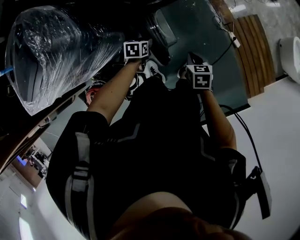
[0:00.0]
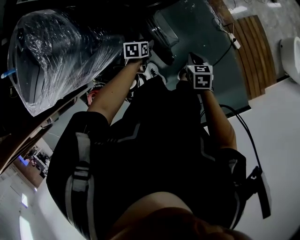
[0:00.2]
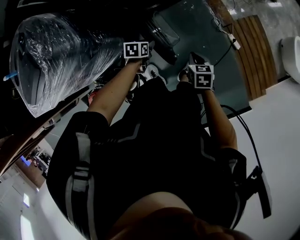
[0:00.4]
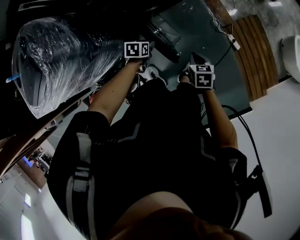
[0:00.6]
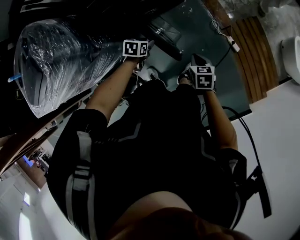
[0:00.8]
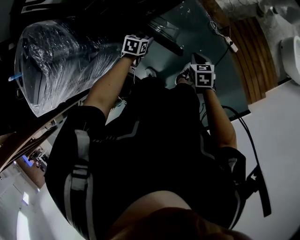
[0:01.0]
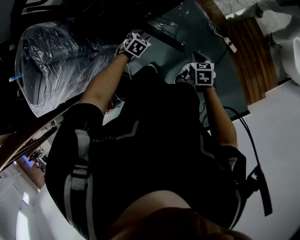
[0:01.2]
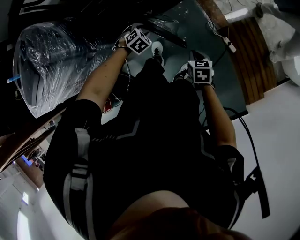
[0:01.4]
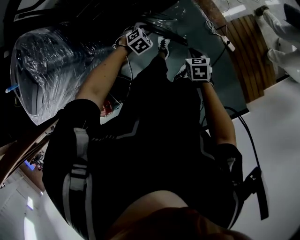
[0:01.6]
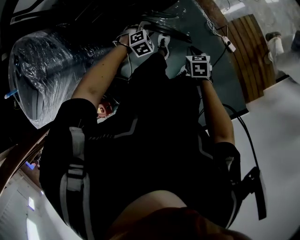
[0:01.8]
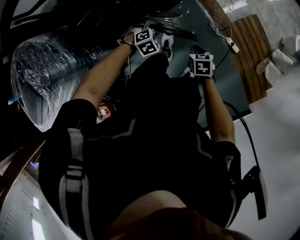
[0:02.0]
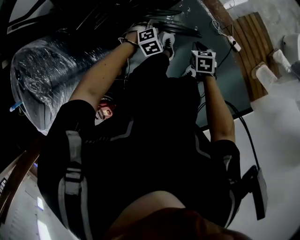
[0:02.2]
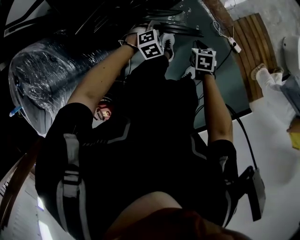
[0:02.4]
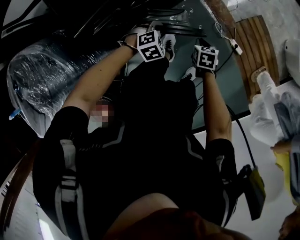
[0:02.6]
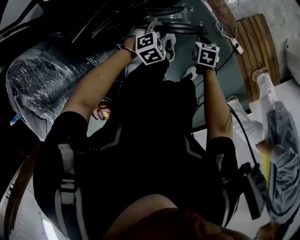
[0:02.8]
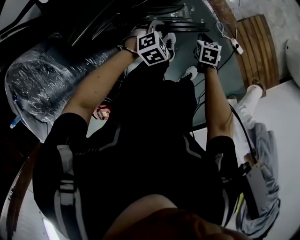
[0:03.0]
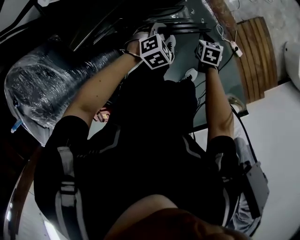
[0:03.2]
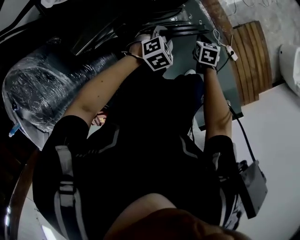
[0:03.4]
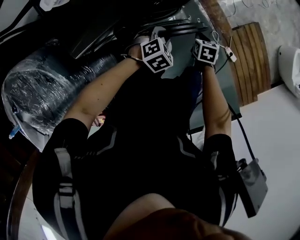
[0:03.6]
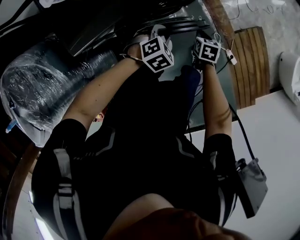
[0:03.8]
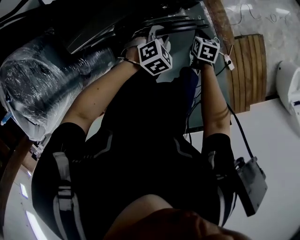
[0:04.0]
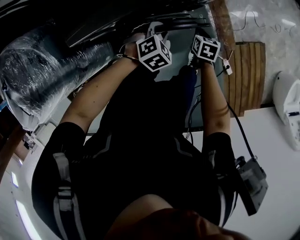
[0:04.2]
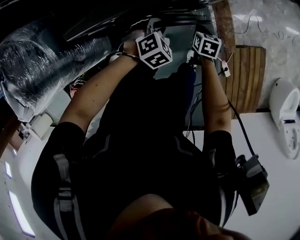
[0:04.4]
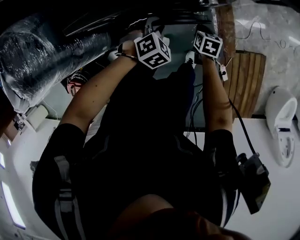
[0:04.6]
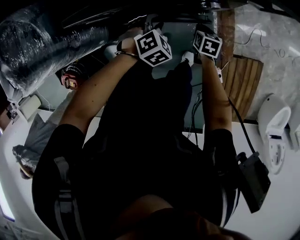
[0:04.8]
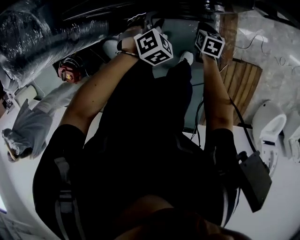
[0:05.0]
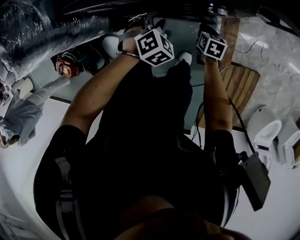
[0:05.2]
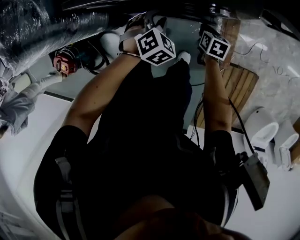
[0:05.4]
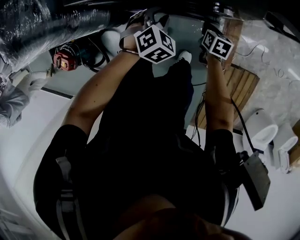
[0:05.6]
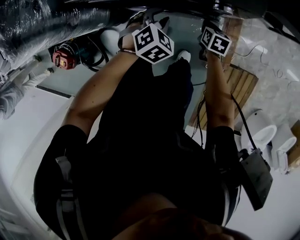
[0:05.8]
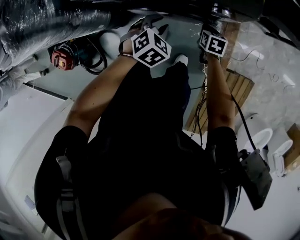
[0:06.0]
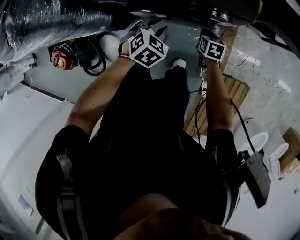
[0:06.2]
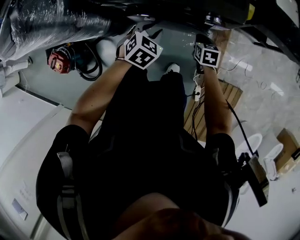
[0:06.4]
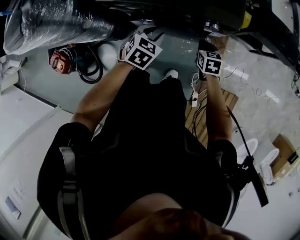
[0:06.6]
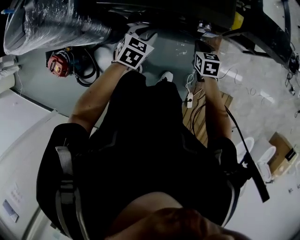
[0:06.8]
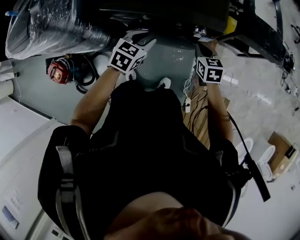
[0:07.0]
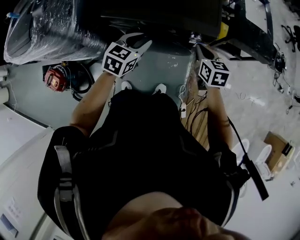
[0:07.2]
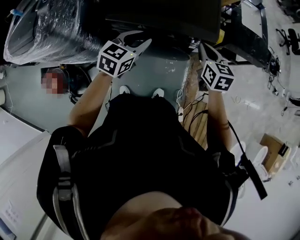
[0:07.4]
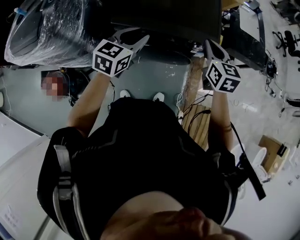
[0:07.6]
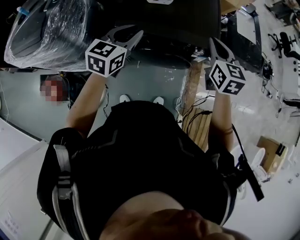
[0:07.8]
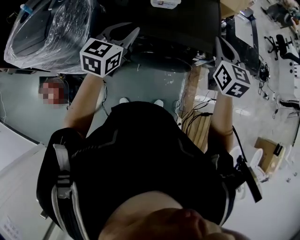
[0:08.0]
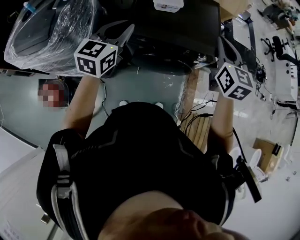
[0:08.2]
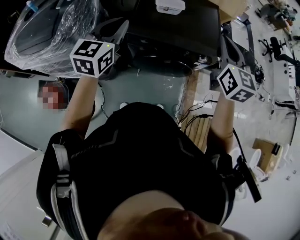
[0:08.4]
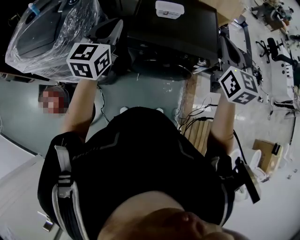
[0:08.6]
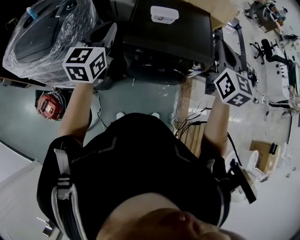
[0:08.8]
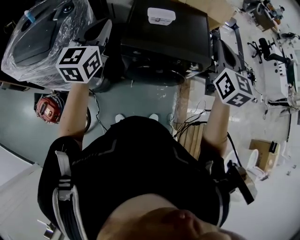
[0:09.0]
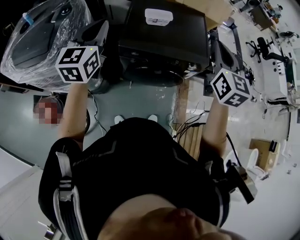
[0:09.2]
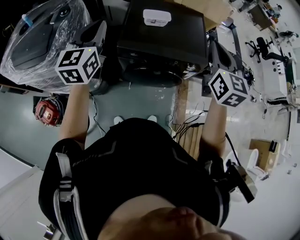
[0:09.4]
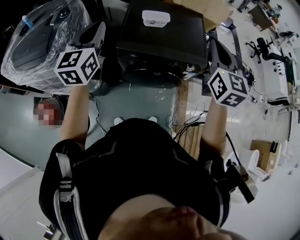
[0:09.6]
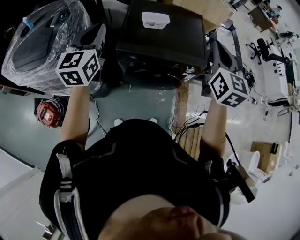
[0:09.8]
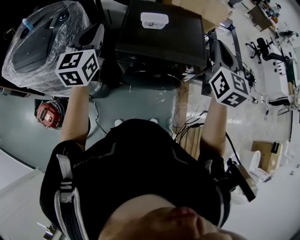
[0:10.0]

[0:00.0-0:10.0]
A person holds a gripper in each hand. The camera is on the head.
0:00.0 to 0:01.4: The two grippers go about 15 cm to the right and forward. The left gripper rolls clockwise, seen from behind, by roughly 60 degrees.
0:01.4 to 0:02.8: The left gripper ends up some 15 cm from where it was, and rotates about 20 degrees, while the right gripper moves about 25 cm.
0:02.8 to 0:04.2: The right gripper changes place by about 15 cm. Meanwhile the left gripper moves about 10 cm, and changes its angle by some 20 degrees.
0:04.2 to 0:05.8: The right gripper ends up about 10 cm from where it was, and swivels roughly 20 degrees. Meanwhile the left gripper changes its angle by roughly 30 degrees.
0:05.8 to 0:07.2: Both grippers move upward, some 30 cm. The left gripper rotates roughly 40 degrees. Meanwhile the right gripper rotates some 30 degrees.
0:07.2 to 0:08.6: The left gripper shifts roughly 35 cm to the left and upward, swivels approximately 30 degrees, and closes up, while the right gripper travels upward and to the left by roughly 35 cm, and changes its angle by some 30 degrees.
0:08.6 to 0:10.0: The grippers move only a little.

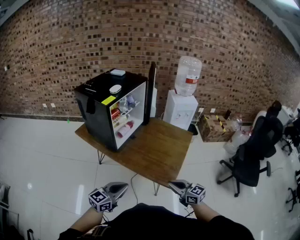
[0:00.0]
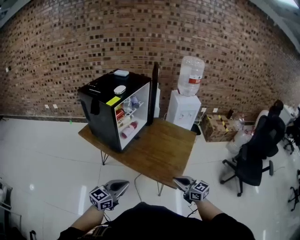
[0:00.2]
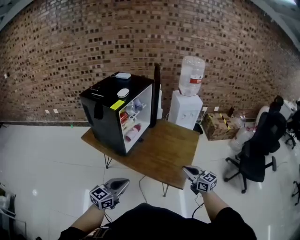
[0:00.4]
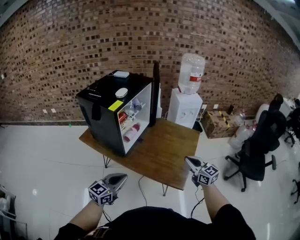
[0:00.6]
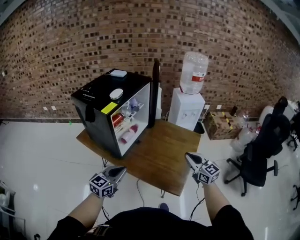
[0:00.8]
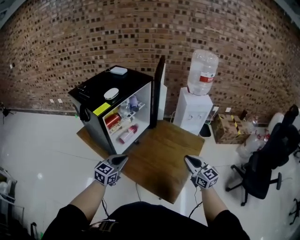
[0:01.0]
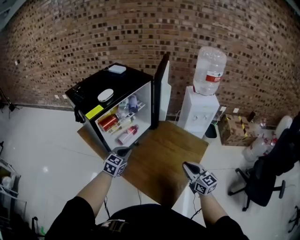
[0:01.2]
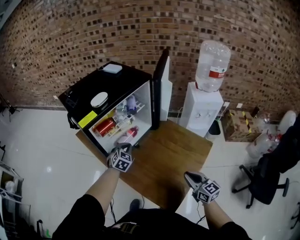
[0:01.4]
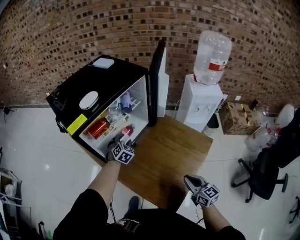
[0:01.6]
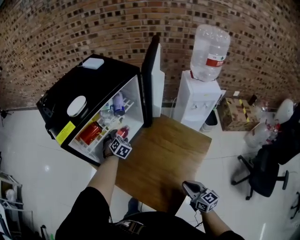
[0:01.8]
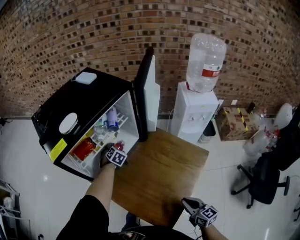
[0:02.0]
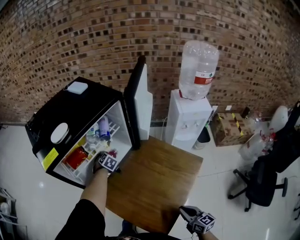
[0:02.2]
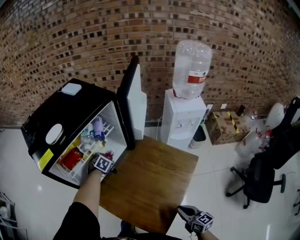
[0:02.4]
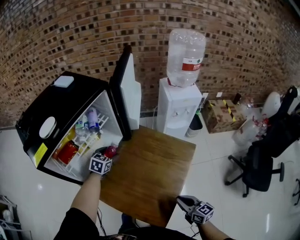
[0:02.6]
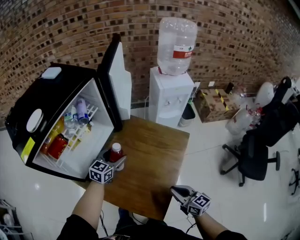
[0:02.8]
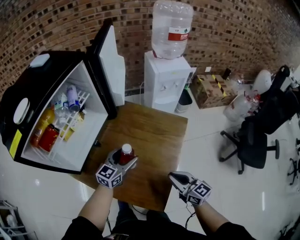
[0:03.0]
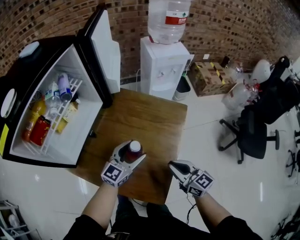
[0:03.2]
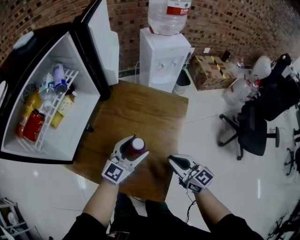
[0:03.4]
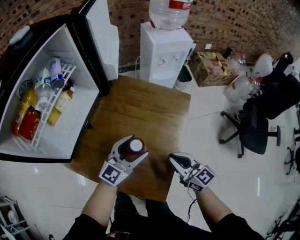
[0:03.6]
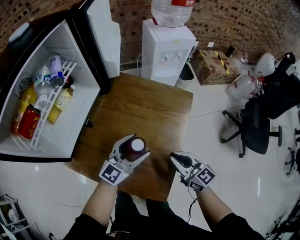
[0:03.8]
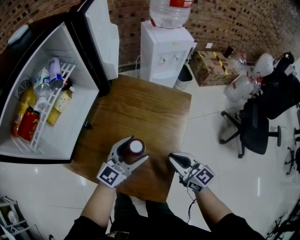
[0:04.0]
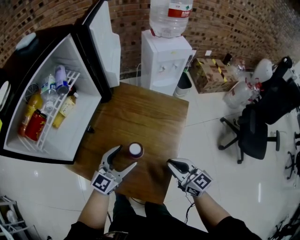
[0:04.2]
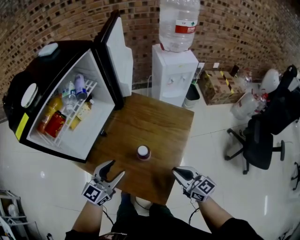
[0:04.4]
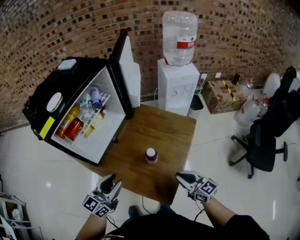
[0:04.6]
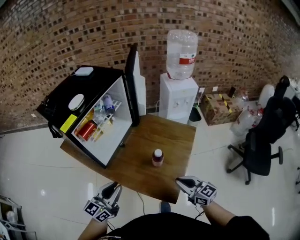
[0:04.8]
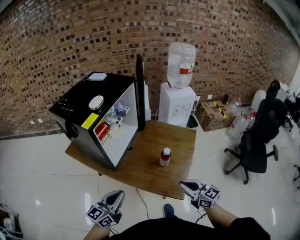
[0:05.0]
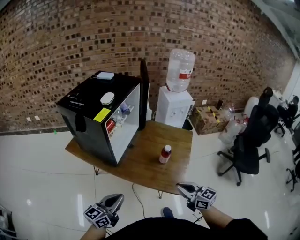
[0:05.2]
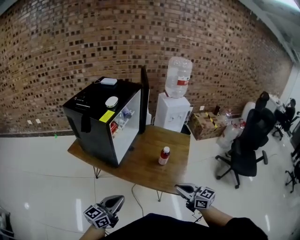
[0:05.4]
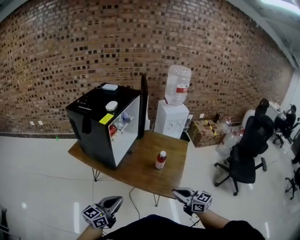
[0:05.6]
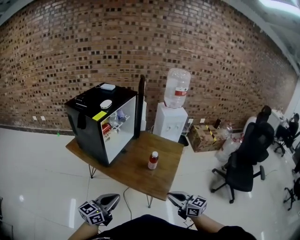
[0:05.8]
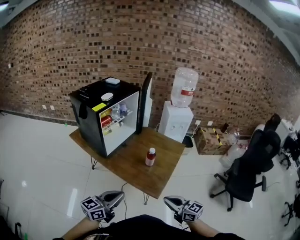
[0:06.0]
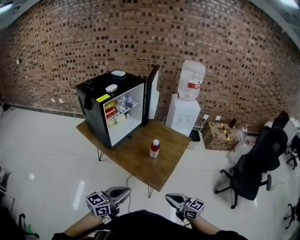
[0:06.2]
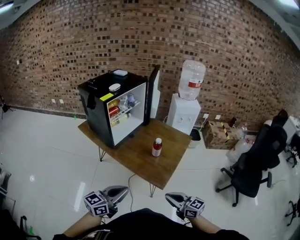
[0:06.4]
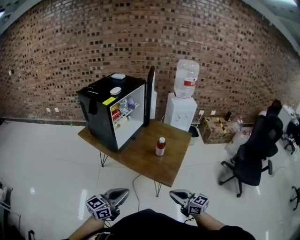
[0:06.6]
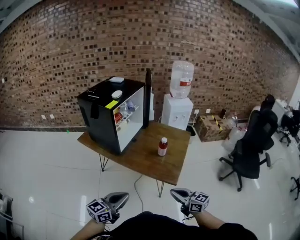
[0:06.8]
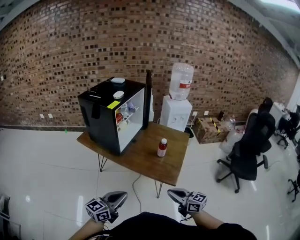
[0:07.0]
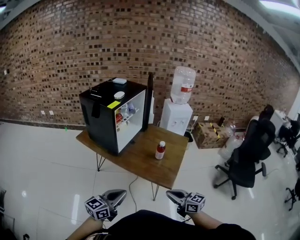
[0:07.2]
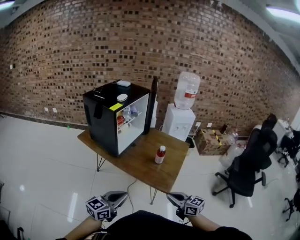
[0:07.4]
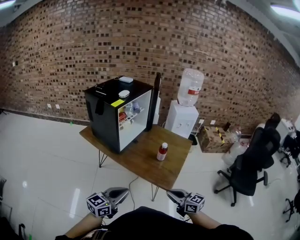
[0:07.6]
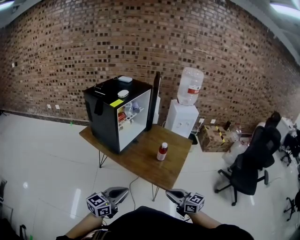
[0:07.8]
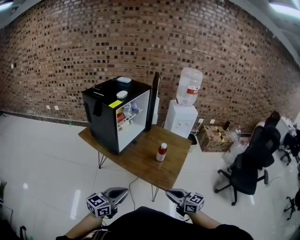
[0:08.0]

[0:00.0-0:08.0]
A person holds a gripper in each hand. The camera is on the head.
0:00.0 to 0:01.6: The left gripper ends up roughly 60 cm from where it was, tips its fingers downward by about 30 degrees, and opens; the right gripper moves about 35 cm.
0:01.6 to 0:03.2: The right gripper moves downward, some 5 cm. Meanwhile the left gripper ends up about 30 cm from where it was, angles its fingers upward, by some 30 degrees, and opens.
0:03.2 to 0:04.8: The left gripper travels backward, to the left and upward by about 35 cm, turns by approximately 20 degrees, and closes up; the right gripper goes about 20 cm backward, upward and to the left.
0:04.8 to 0:06.4: The two grippers go roughly 30 cm backward.
0:06.4 to 0:08.0: The grippers both shift to the left by approximately 10 cm.

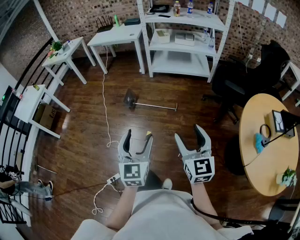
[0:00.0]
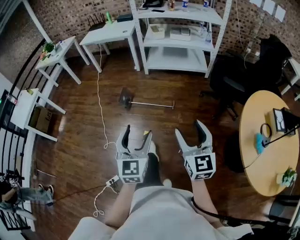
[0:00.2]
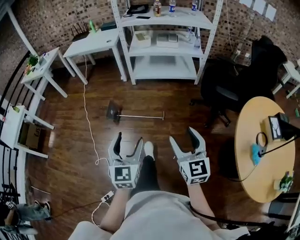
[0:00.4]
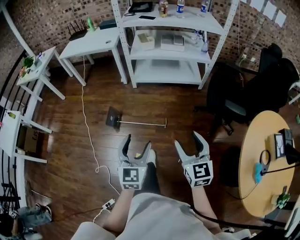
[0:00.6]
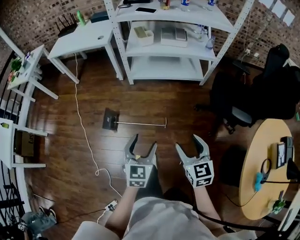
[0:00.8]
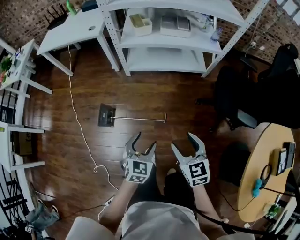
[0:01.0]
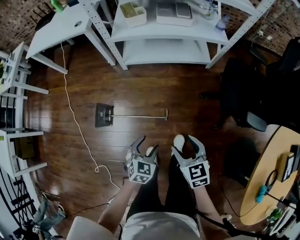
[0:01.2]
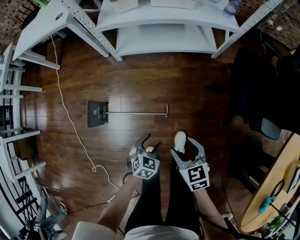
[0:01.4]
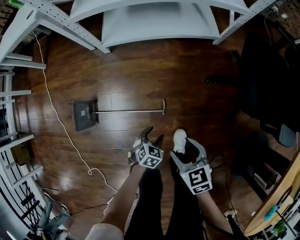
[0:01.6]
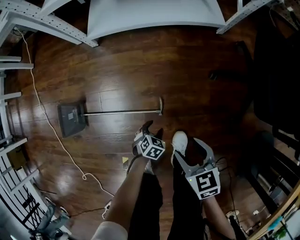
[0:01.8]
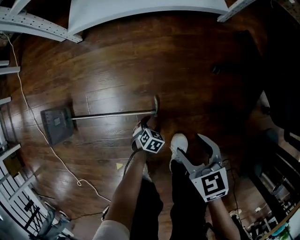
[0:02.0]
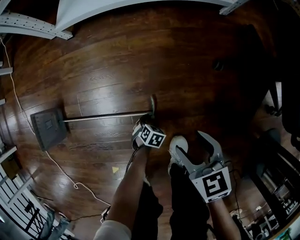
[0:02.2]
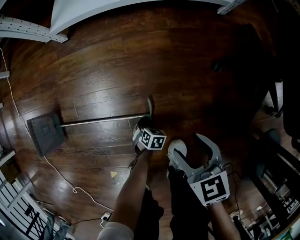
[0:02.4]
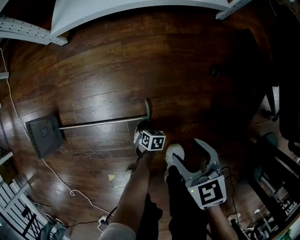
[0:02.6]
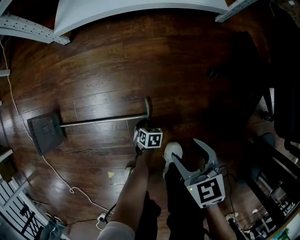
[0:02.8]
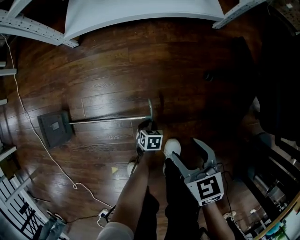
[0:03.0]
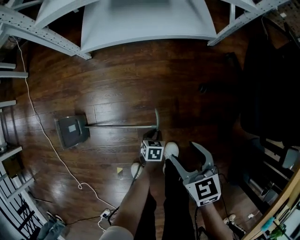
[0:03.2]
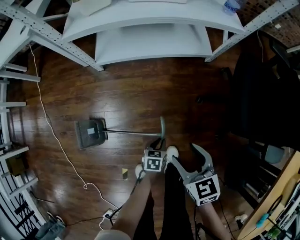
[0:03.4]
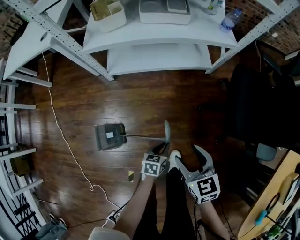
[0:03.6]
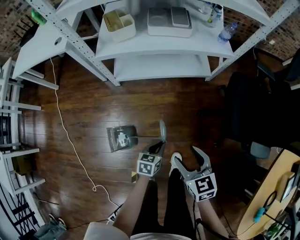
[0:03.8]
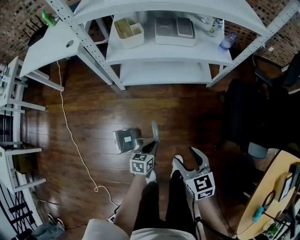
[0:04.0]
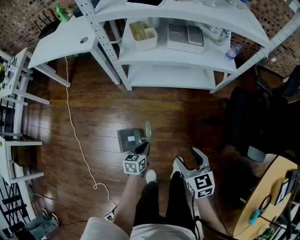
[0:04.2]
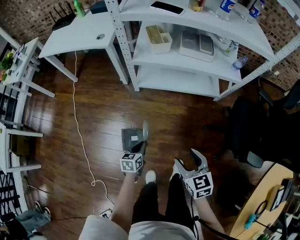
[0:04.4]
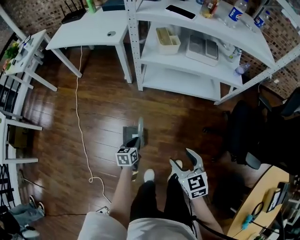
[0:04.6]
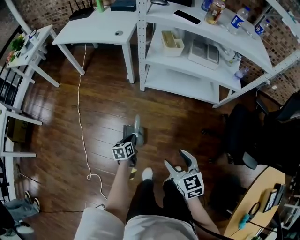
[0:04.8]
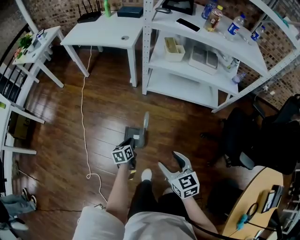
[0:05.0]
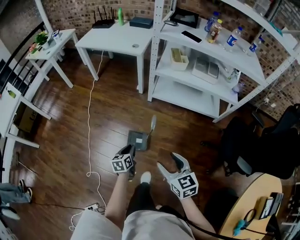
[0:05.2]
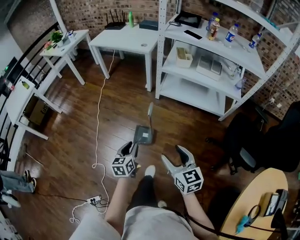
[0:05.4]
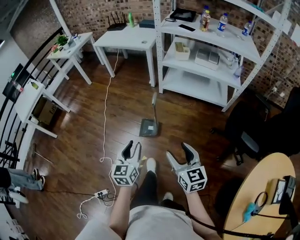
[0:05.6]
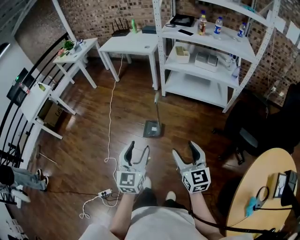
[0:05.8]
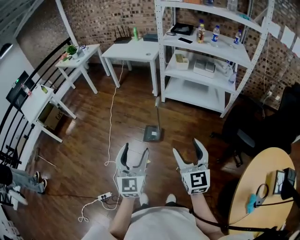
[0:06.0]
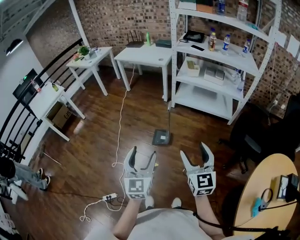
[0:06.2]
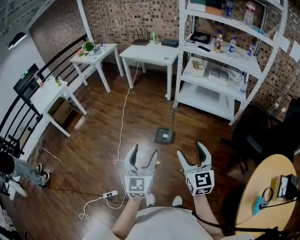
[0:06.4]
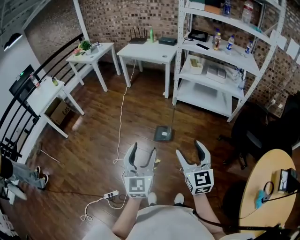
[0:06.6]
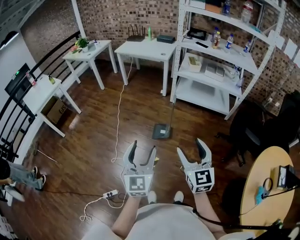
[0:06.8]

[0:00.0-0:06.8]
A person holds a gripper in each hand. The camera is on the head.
0:00.0 to 0:01.4: The pair of grippers is taken forward, some 60 cm. Both grippers move downward, about 40 cm. The left gripper angles its fingers downward, by roughly 40 degrees, while the right gripper angles its fingers downward, by approximately 40 degrees.
0:01.4 to 0:02.8: The left gripper moves downward, about 50 cm, rotates about 30 degrees, and closes. The right gripper goes roughly 30 cm downward.
0:02.8 to 0:04.0: Both grippers travel together upward, about 50 cm. The left gripper points its fingers about 40 degrees further upward.
0:04.0 to 0:05.4: The right gripper moves some 30 cm, and turns by about 30 degrees. The left gripper ends up approximately 40 cm from where it was, and turns by some 40 degrees.
0:05.4 to 0:06.8: The left gripper heads backward, upward and to the left, covering approximately 40 cm, changes its angle by approximately 40 degrees, and opens up, while the right gripper heads backward, to the left and upward, covering approximately 30 cm, and turns by some 20 degrees.
